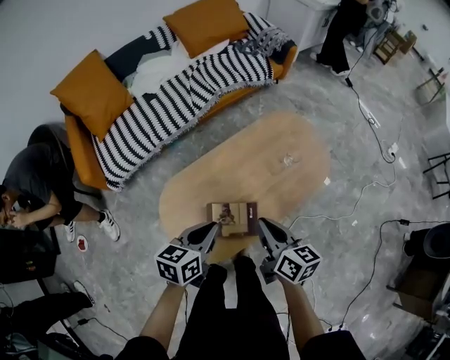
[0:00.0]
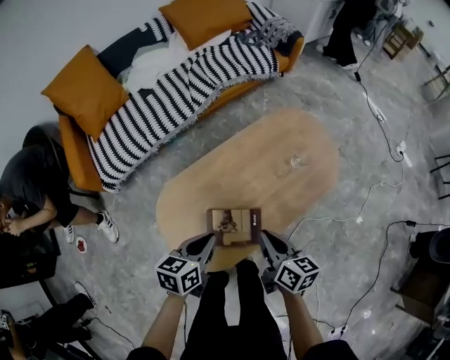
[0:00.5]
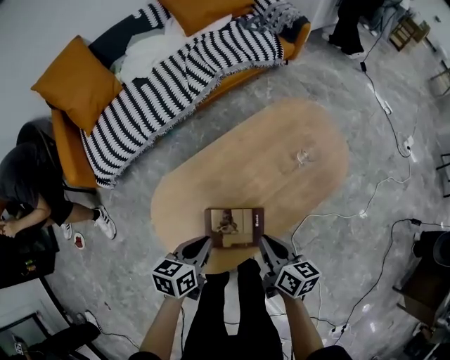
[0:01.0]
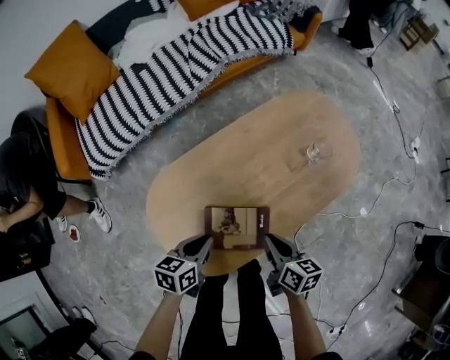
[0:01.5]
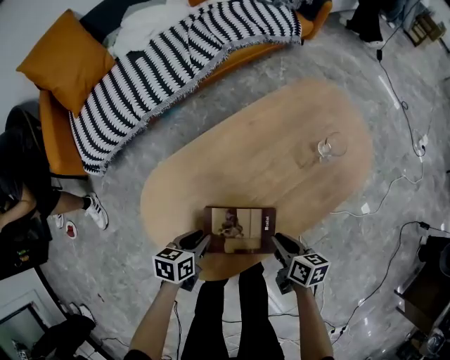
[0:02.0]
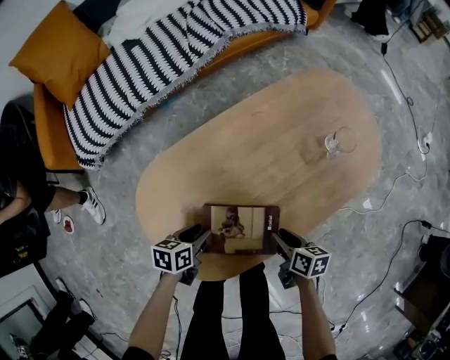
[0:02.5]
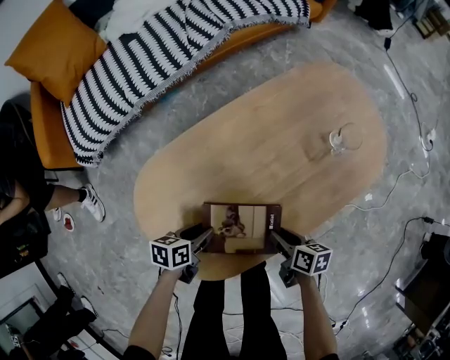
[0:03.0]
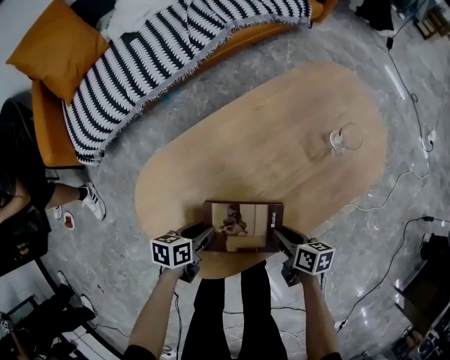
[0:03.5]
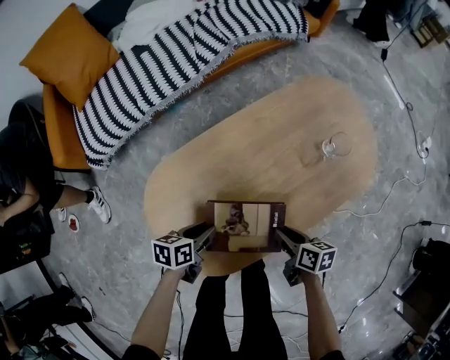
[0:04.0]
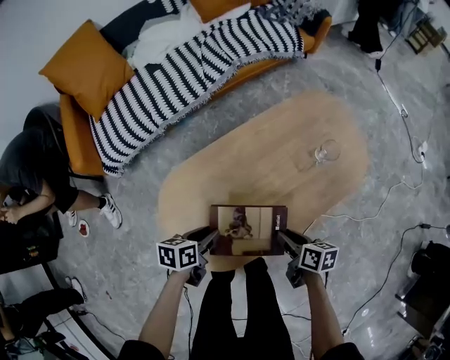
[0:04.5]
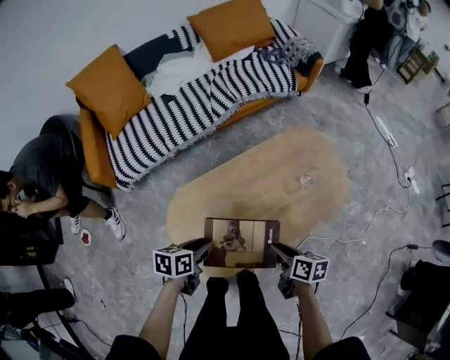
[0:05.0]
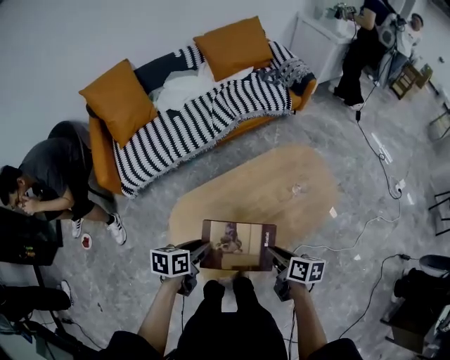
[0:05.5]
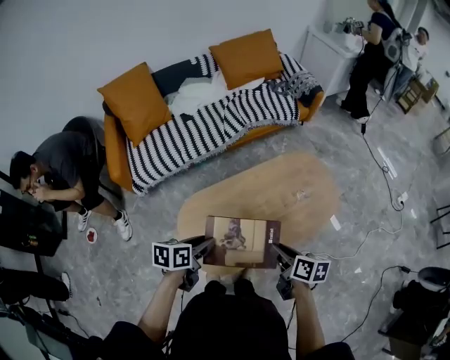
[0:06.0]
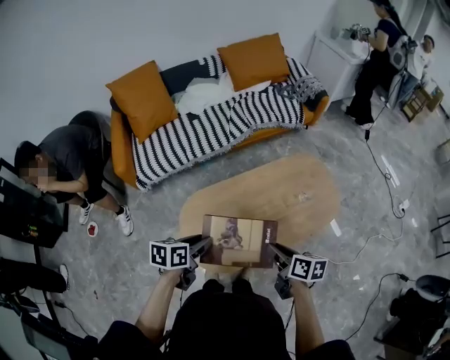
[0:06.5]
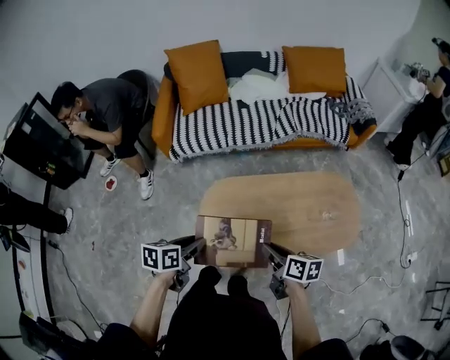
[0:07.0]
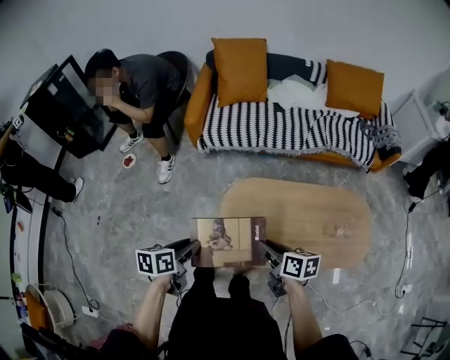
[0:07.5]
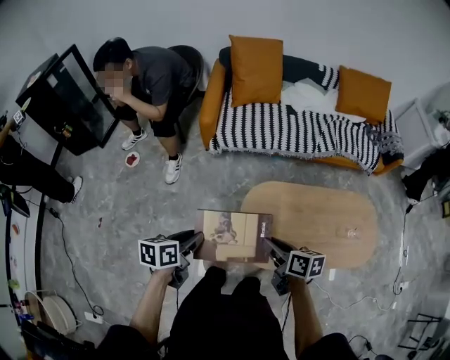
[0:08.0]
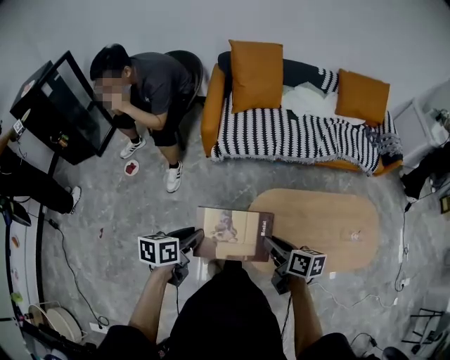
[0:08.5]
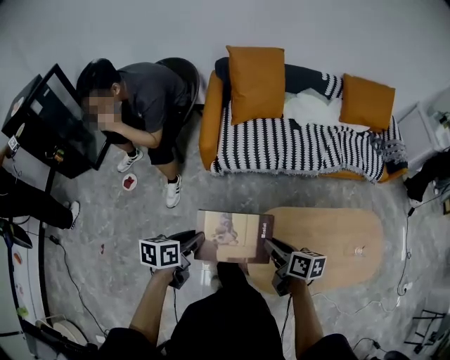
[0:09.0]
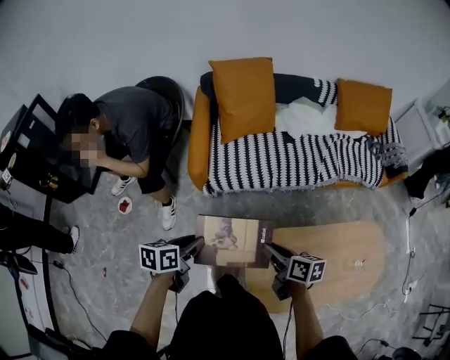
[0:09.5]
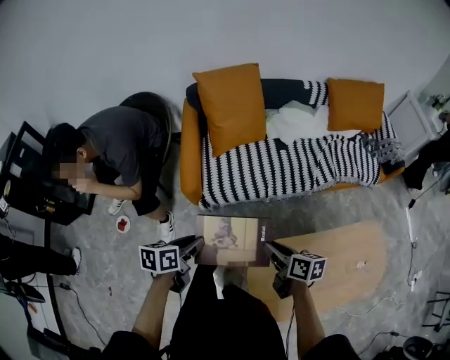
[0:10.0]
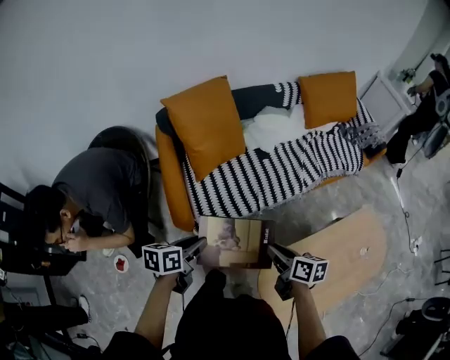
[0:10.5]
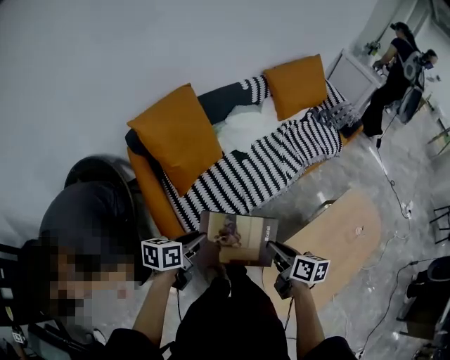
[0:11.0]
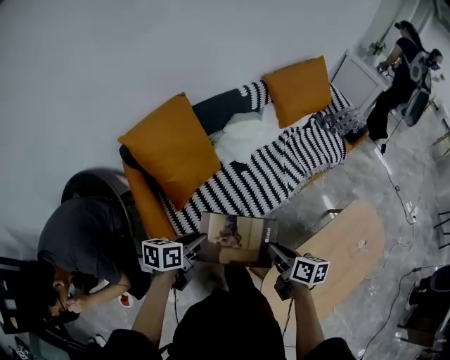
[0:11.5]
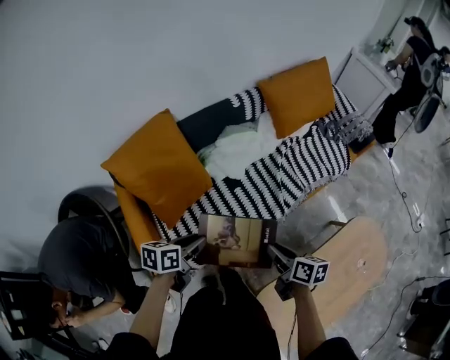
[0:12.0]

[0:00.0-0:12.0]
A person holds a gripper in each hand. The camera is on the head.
0.0 to 2.0 s: The two grippers go some 35 cm downward. The right gripper changes its angle by roughly 30 degrees. Meanwhile the left gripper changes its angle by some 20 degrees, and opens.
2.0 to 4.0 s: The right gripper travels downward and back again, approximately 10 cm each way. Meanwhile the left gripper reaches approximately 5 cm downward, then returns.
4.0 to 6.0 s: The two grippers go roughly 35 cm upward.
6.0 to 8.0 s: The left gripper changes place by about 35 cm, and rotates roughly 30 degrees; the right gripper ends up approximately 35 cm from where it was, and changes its angle by roughly 40 degrees.
8.0 to 10.0 s: The two grippers go roughly 40 cm forward.
10.0 to 12.0 s: The left gripper moves some 50 cm, and changes its angle by approximately 30 degrees; the right gripper changes place by roughly 35 cm, and swivels roughly 30 degrees.

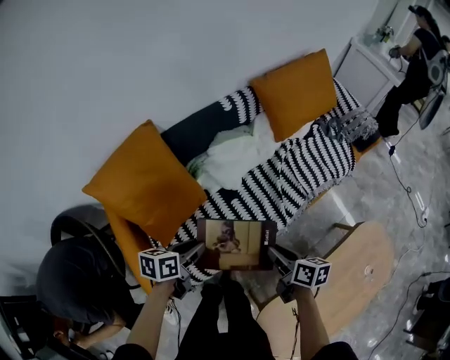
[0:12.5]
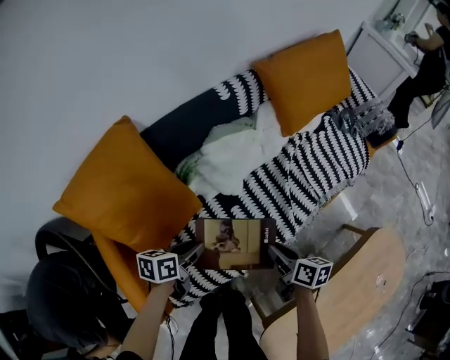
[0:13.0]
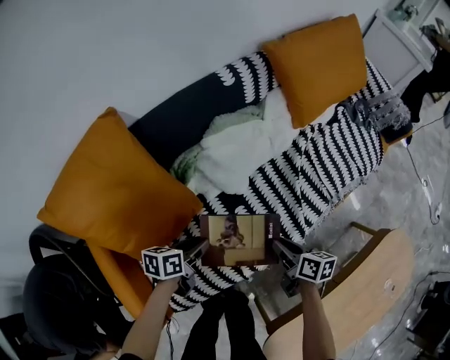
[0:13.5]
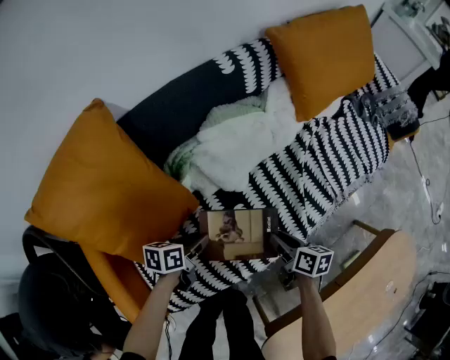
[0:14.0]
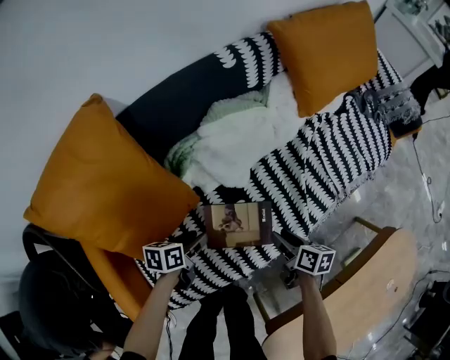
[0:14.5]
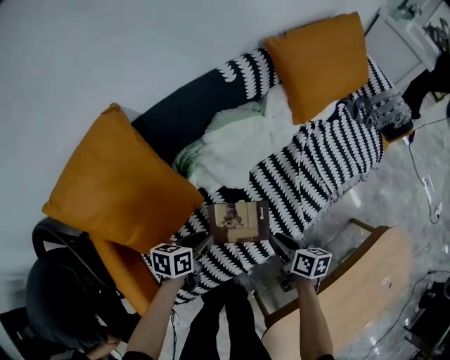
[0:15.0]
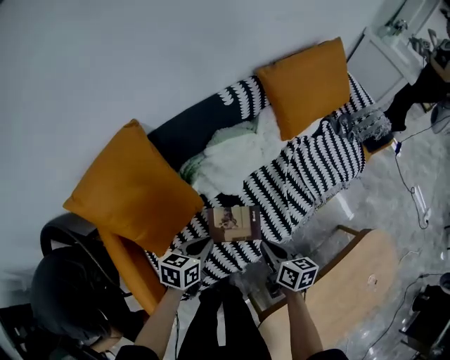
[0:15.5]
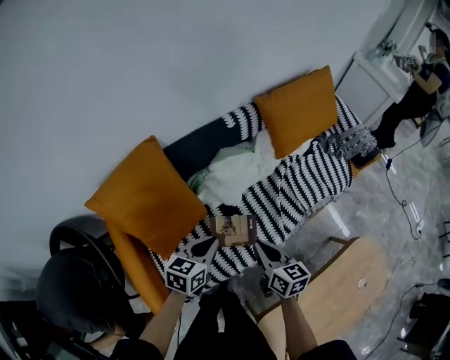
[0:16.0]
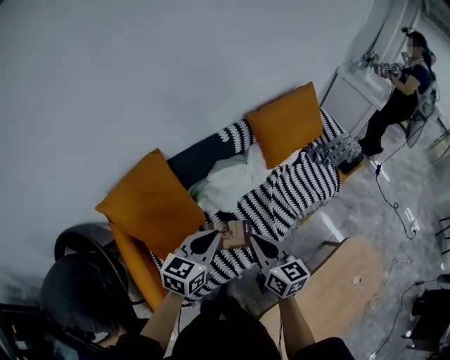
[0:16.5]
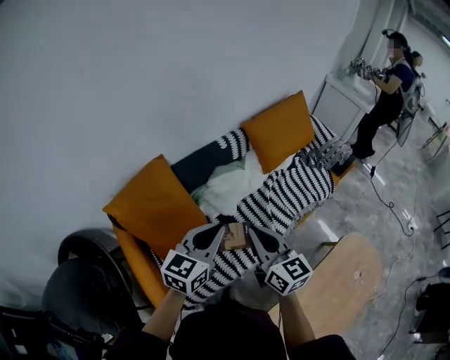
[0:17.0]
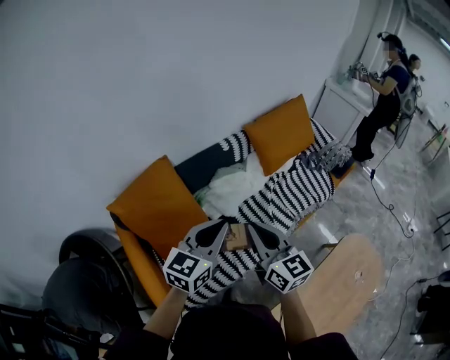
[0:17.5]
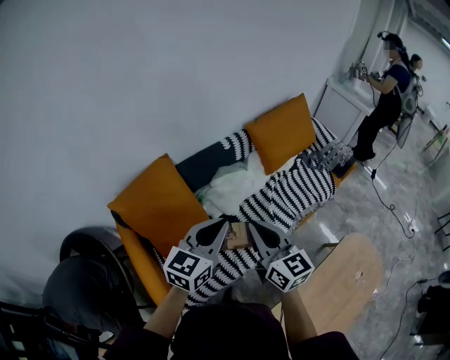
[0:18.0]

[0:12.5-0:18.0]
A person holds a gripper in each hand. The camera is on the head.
12.5 to 14.5 s: The left gripper is displaced downward by about 35 cm, while the right gripper is displaced downward and forward by about 35 cm, and opens its fingers.
14.5 to 16.0 s: The two grippers go roughly 35 cm upward. The right gripper rotates about 30 degrees, and closes up; the left gripper swivels some 40 degrees, and closes.
16.0 to 18.0 s: The grippers both shift upward by approximately 25 cm. The left gripper rotates some 30 degrees; the right gripper changes its angle by some 30 degrees.

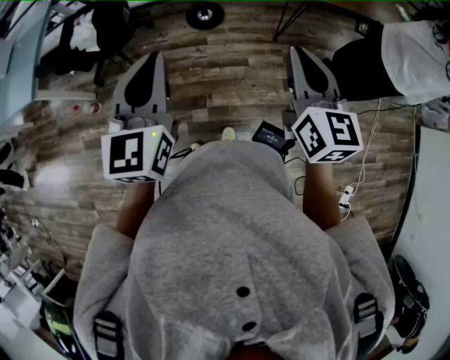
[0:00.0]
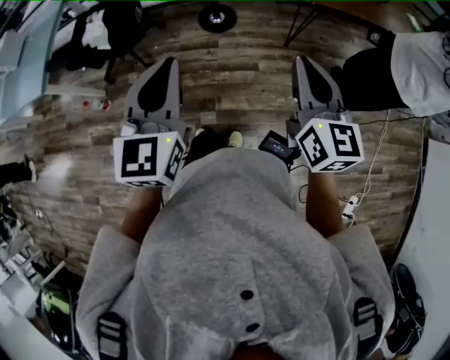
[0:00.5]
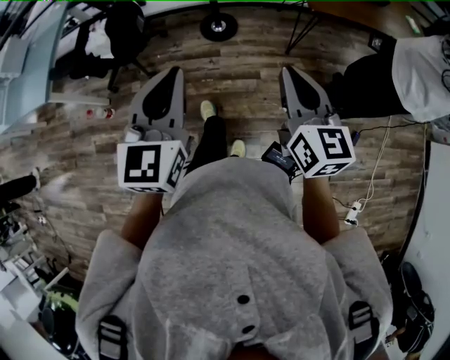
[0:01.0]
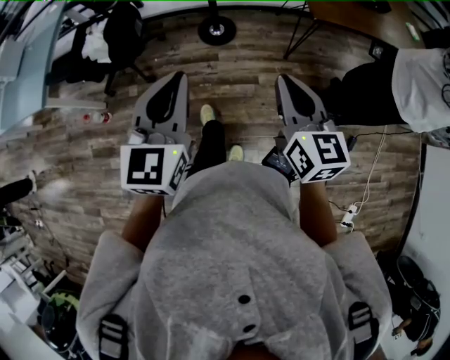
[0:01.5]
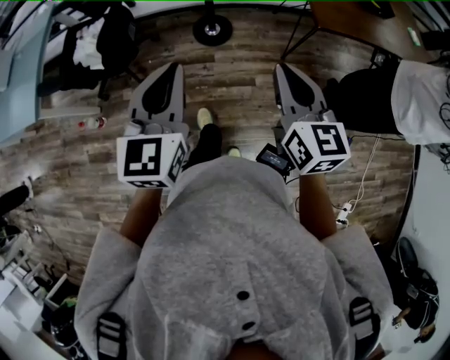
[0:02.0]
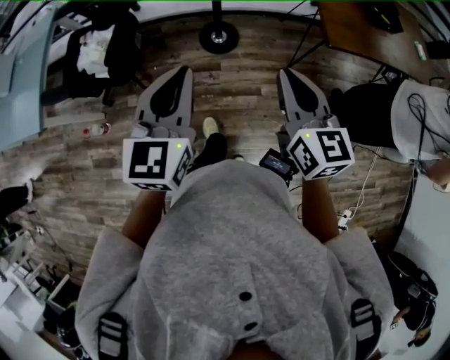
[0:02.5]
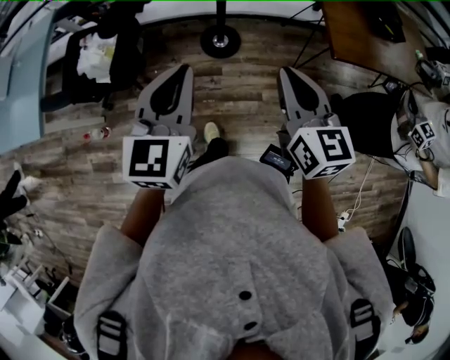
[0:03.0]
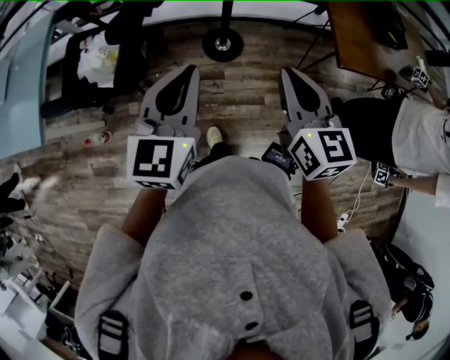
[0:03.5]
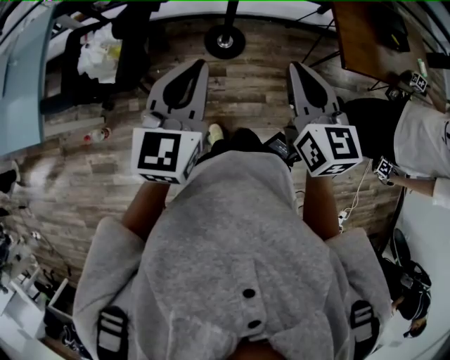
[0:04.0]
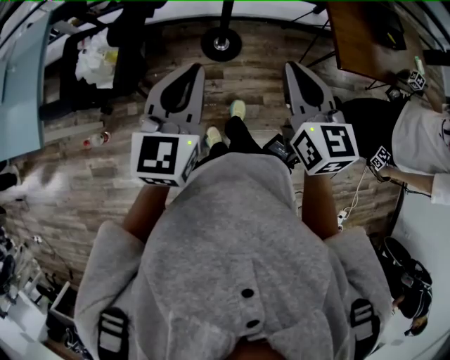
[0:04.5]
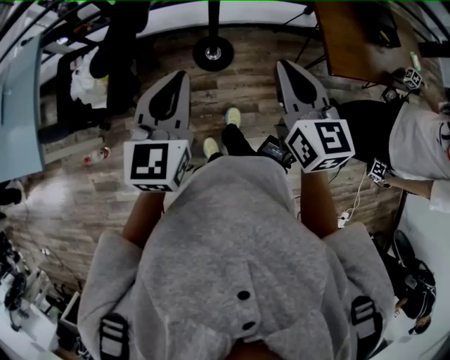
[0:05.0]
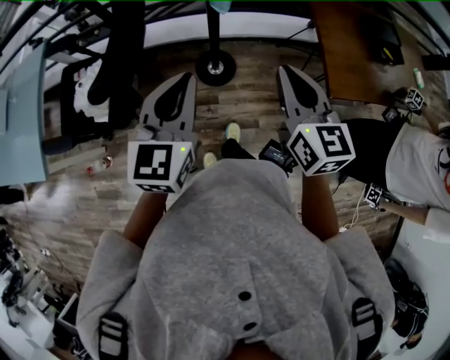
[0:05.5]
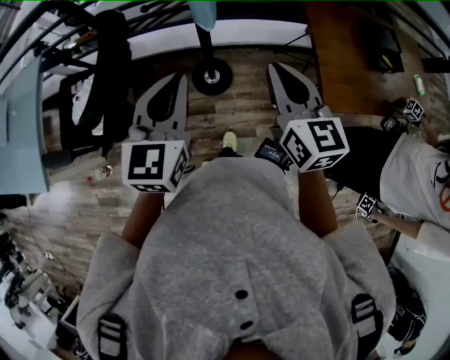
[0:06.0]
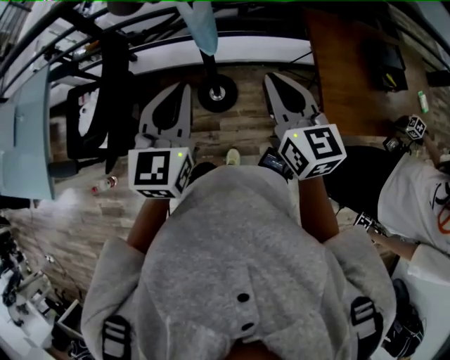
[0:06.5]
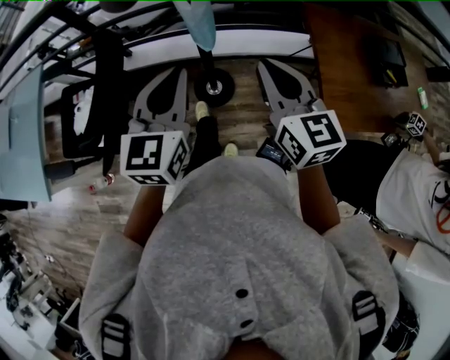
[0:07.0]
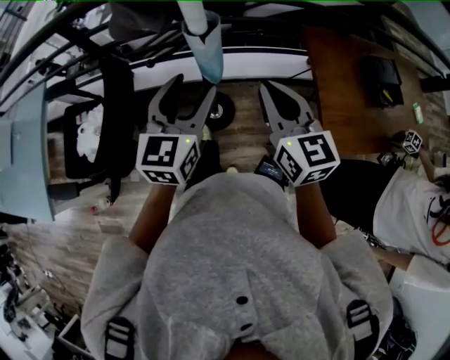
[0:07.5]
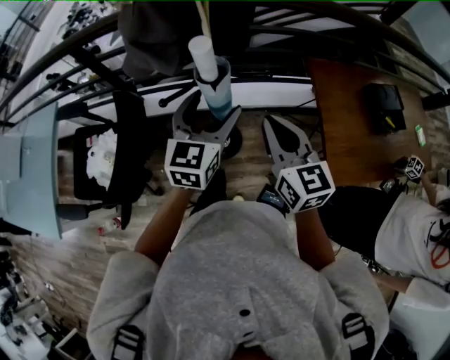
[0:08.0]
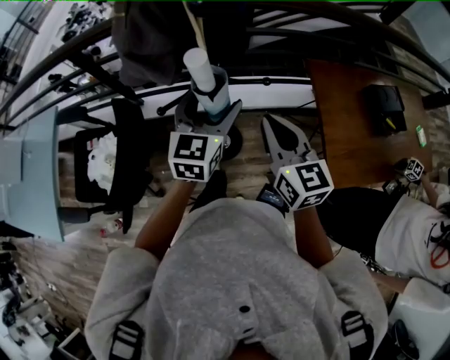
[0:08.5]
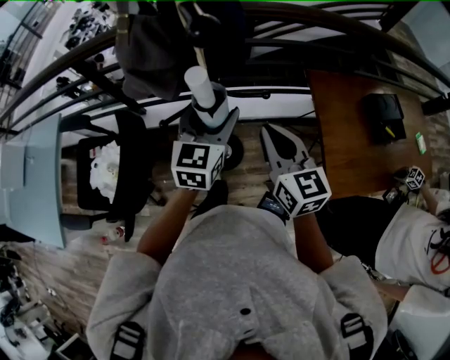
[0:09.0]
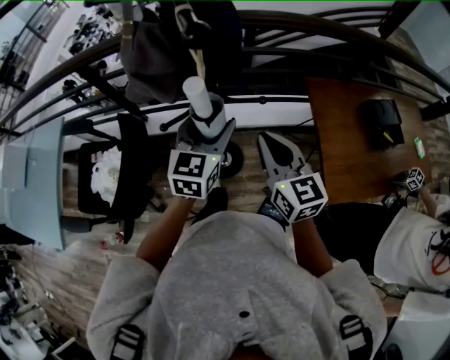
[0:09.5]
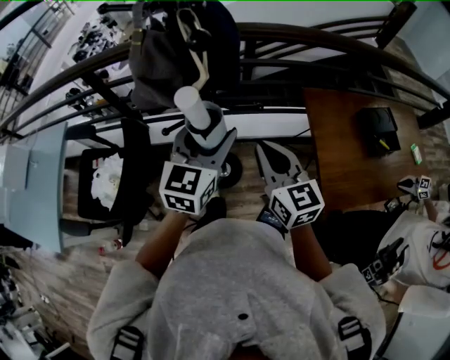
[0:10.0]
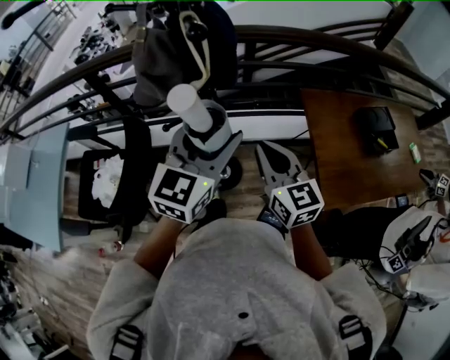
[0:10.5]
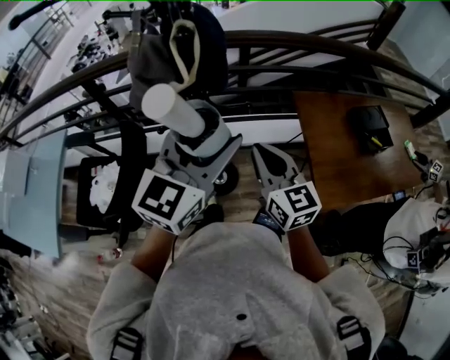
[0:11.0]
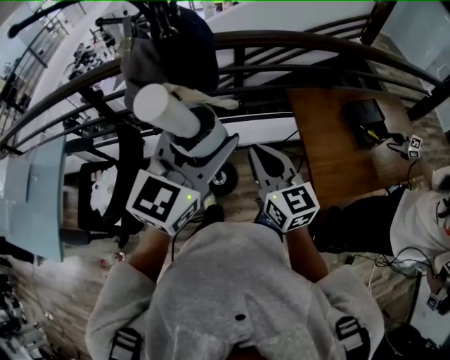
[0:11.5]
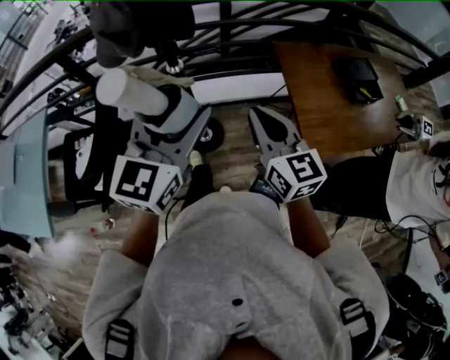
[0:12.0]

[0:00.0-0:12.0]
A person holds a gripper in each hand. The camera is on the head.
0.0 to 2.0 s: The right gripper moves forward and to the left, some 15 cm. The left gripper travels forward by approximately 15 cm.
2.0 to 4.0 s: Both grippers travel together forward and to the left, some 20 cm.
4.0 to 6.0 s: Both grippers travel together forward and to the right, about 25 cm.
6.0 to 8.0 s: The left gripper heads forward, covering roughly 20 cm, and opens. Meanwhile the right gripper is displaced forward by approximately 15 cm.
8.0 to 10.0 s: The left gripper shifts approximately 5 cm upward.
10.0 to 12.0 s: The right gripper is displaced backward and to the right by approximately 10 cm. The left gripper heads backward, upward and to the right, covering approximately 15 cm.
